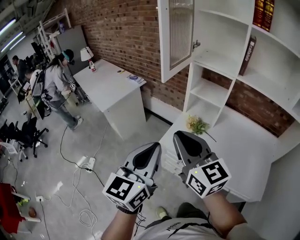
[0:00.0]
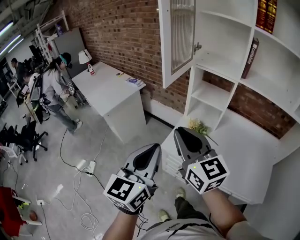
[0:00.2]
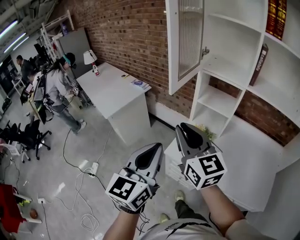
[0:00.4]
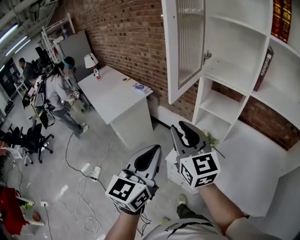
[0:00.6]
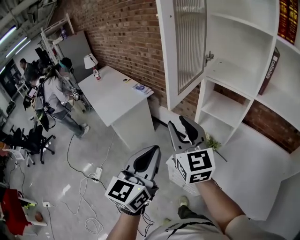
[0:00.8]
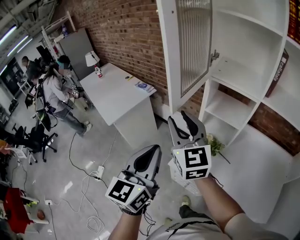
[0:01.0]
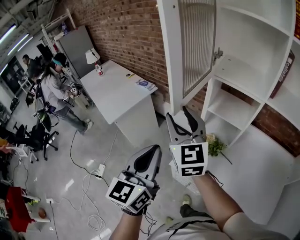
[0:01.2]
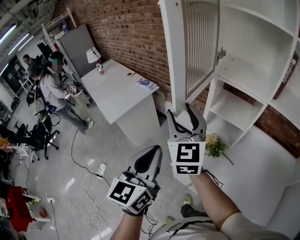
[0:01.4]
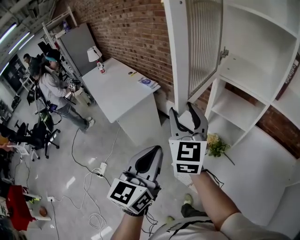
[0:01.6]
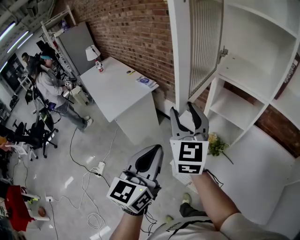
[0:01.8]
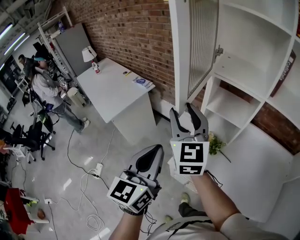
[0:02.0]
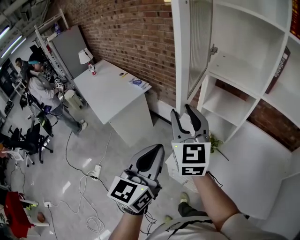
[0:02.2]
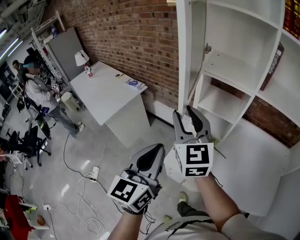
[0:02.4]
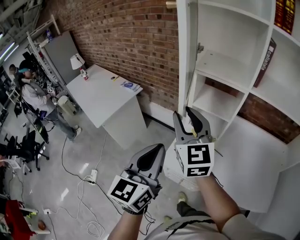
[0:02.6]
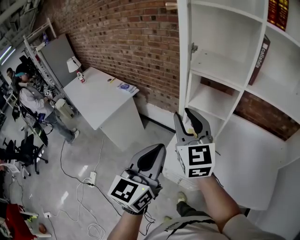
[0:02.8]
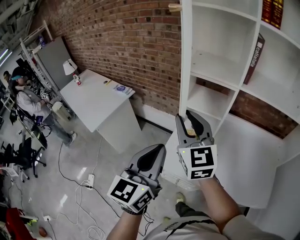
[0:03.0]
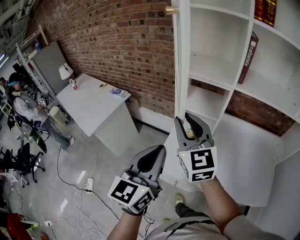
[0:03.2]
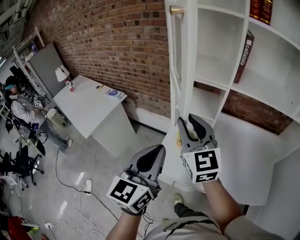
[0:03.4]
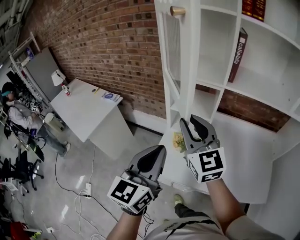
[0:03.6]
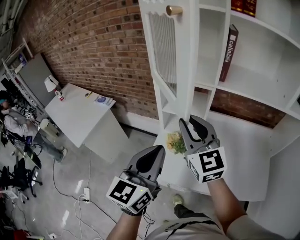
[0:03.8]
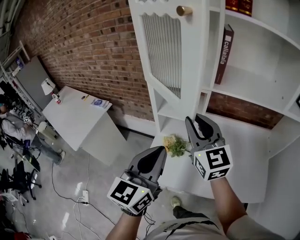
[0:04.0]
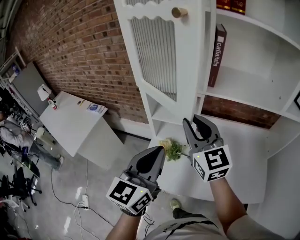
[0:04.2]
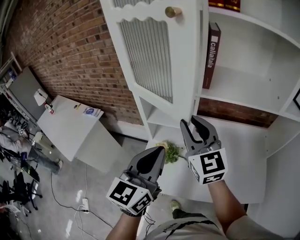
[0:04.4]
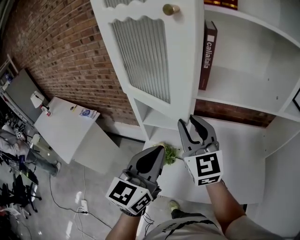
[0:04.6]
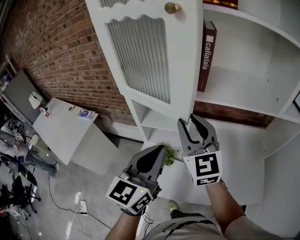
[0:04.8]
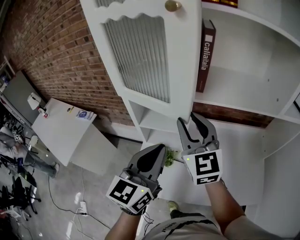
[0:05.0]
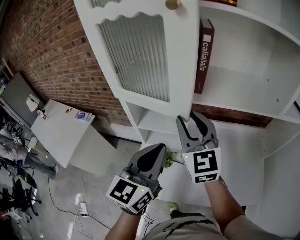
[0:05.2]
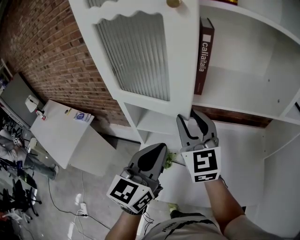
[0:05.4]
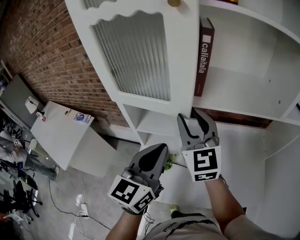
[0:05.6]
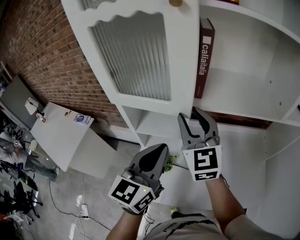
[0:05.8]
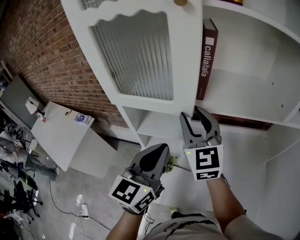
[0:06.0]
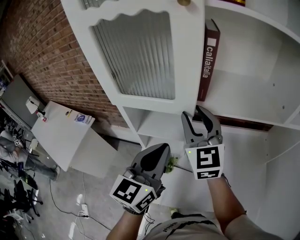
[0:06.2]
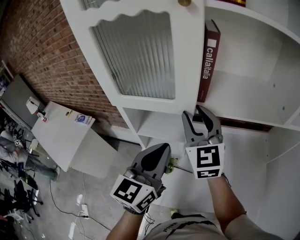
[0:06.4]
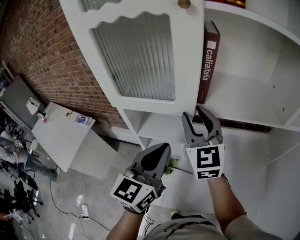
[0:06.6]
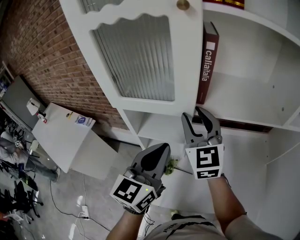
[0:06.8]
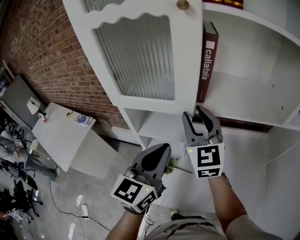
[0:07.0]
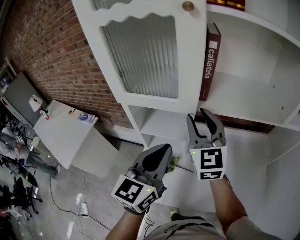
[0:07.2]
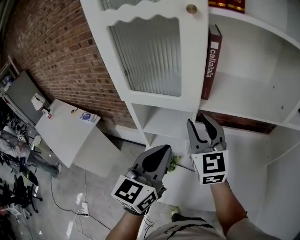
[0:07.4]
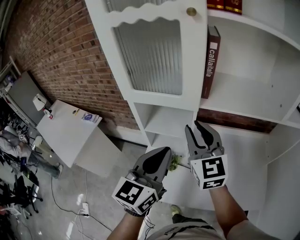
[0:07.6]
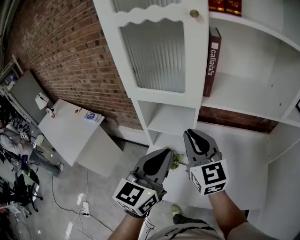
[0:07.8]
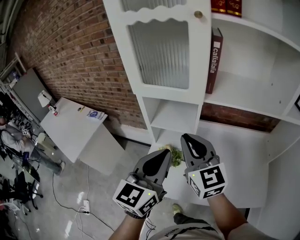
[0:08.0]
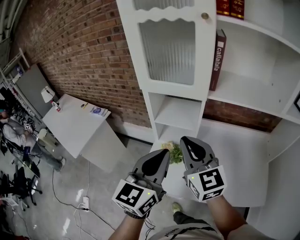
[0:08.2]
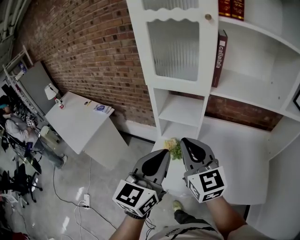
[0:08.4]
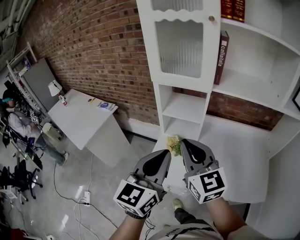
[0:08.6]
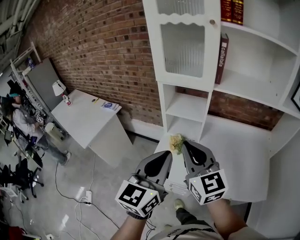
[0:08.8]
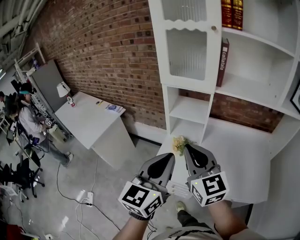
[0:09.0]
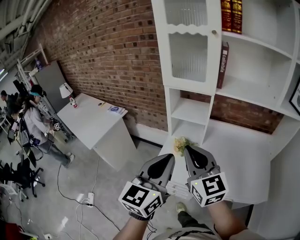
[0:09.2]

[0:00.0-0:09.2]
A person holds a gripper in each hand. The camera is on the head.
0:00.0 to 0:01.6: The grippers both shift forward by some 25 cm. The right gripper changes its angle by roughly 20 degrees, and opens up.
0:01.6 to 0:03.0: Both grippers move to the right, about 10 cm. The right gripper closes.
0:03.0 to 0:04.6: Both grippers move to the right and forward, about 20 cm.
0:04.6 to 0:06.2: Both grippers move forward, roughly 10 cm.
0:06.2 to 0:07.6: Both grippers move backward, some 5 cm.
0:07.6 to 0:09.2: The right gripper heads backward and to the left, covering about 30 cm, and closes its fingers. The left gripper goes roughly 25 cm backward.

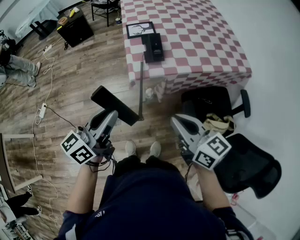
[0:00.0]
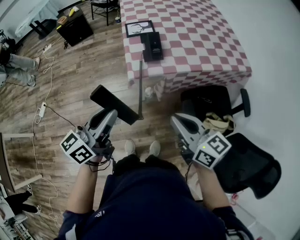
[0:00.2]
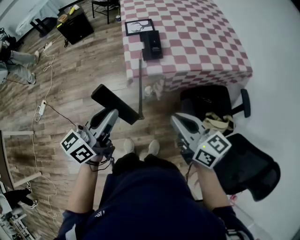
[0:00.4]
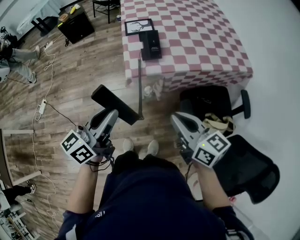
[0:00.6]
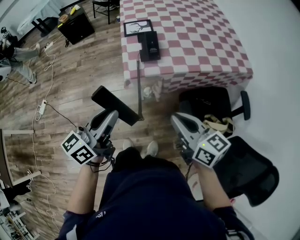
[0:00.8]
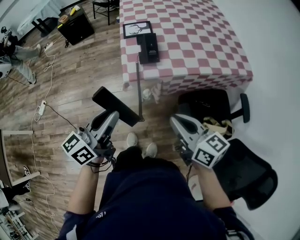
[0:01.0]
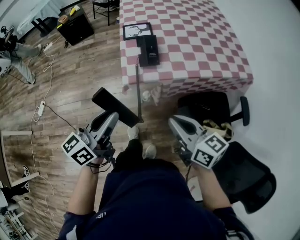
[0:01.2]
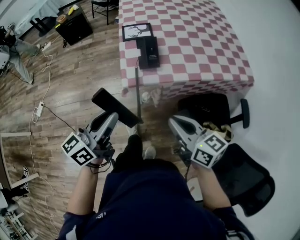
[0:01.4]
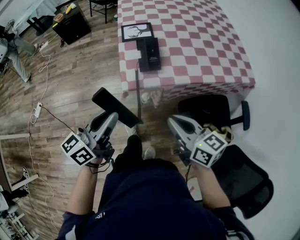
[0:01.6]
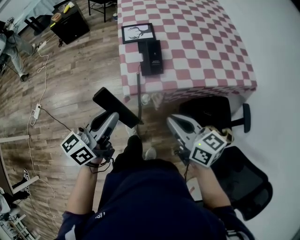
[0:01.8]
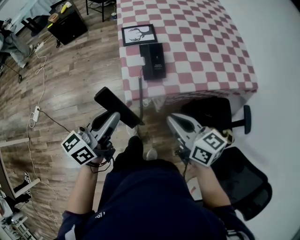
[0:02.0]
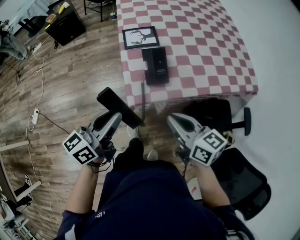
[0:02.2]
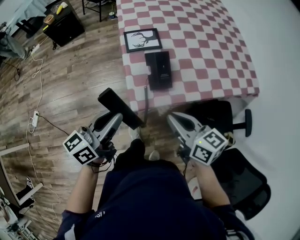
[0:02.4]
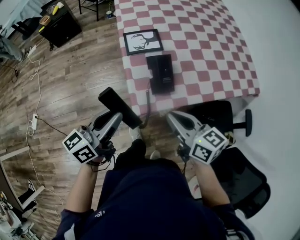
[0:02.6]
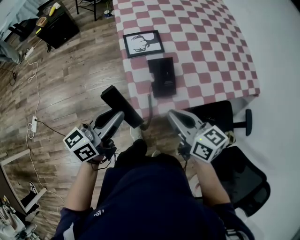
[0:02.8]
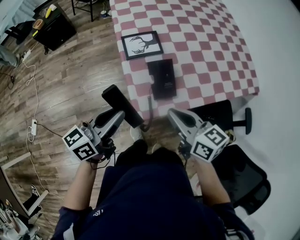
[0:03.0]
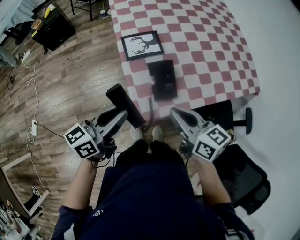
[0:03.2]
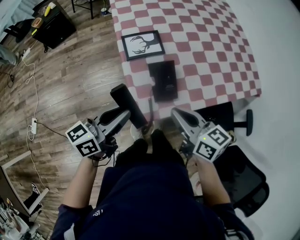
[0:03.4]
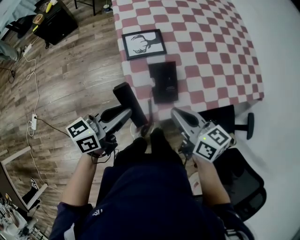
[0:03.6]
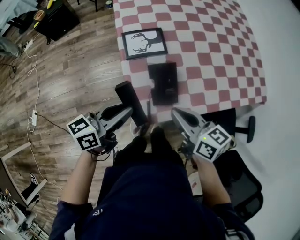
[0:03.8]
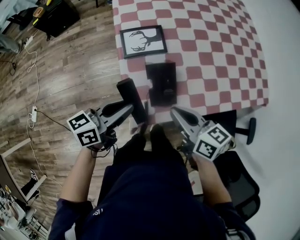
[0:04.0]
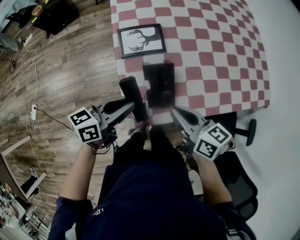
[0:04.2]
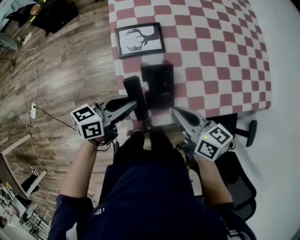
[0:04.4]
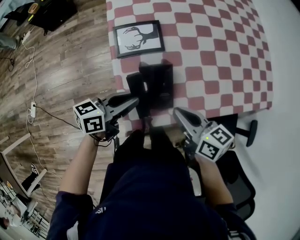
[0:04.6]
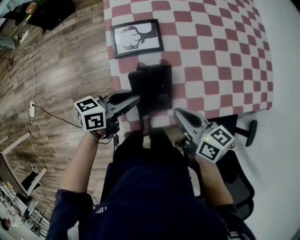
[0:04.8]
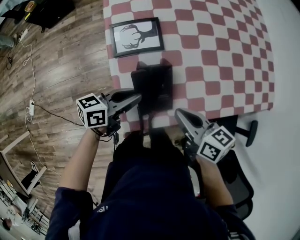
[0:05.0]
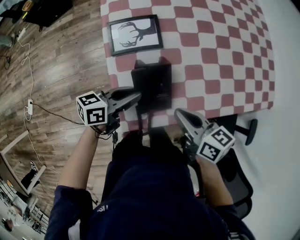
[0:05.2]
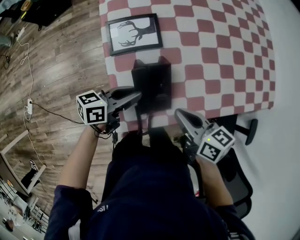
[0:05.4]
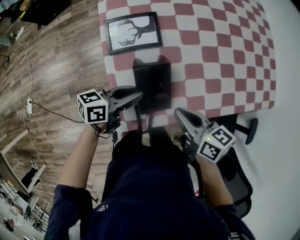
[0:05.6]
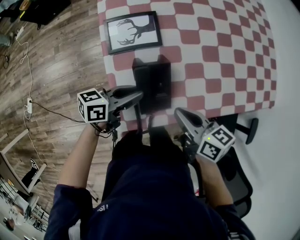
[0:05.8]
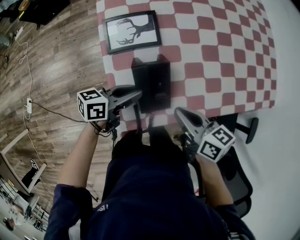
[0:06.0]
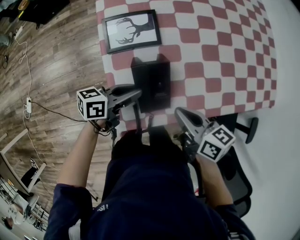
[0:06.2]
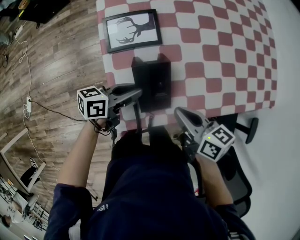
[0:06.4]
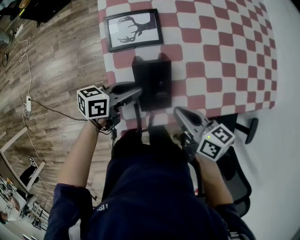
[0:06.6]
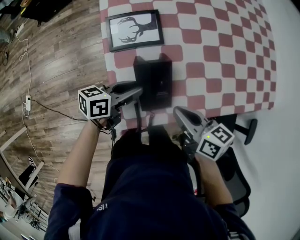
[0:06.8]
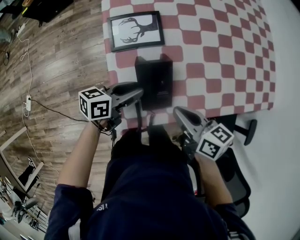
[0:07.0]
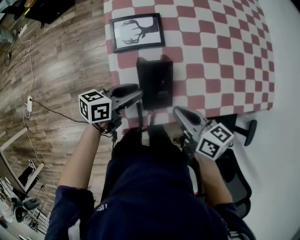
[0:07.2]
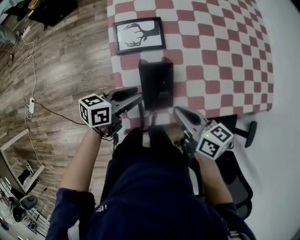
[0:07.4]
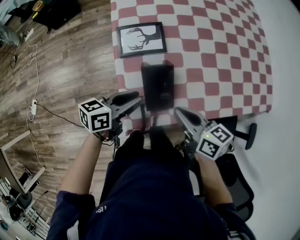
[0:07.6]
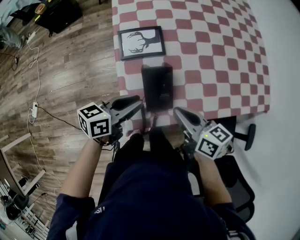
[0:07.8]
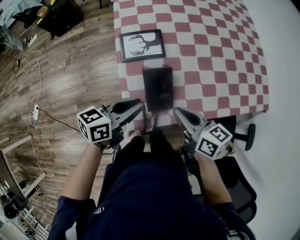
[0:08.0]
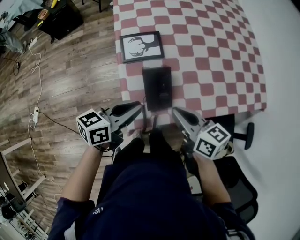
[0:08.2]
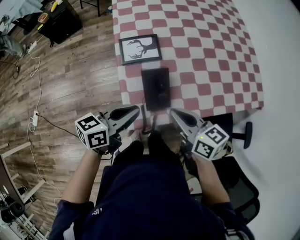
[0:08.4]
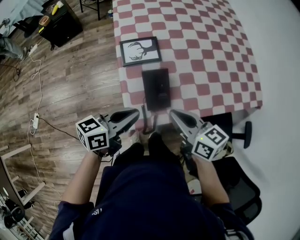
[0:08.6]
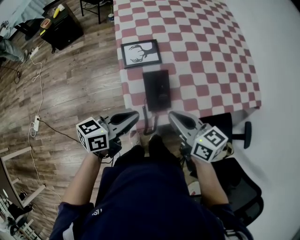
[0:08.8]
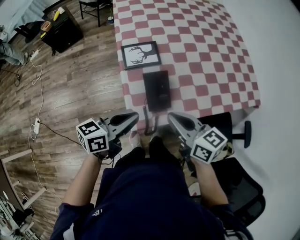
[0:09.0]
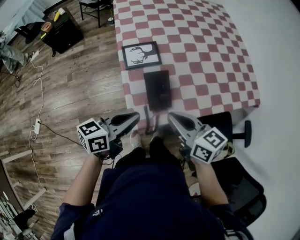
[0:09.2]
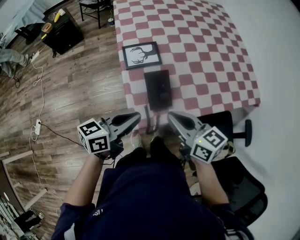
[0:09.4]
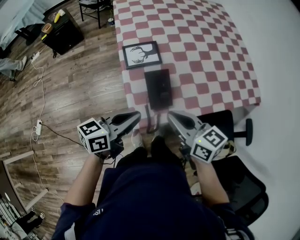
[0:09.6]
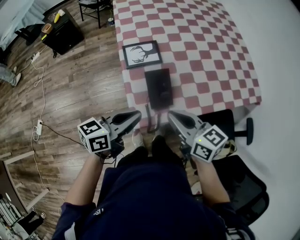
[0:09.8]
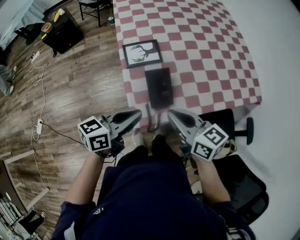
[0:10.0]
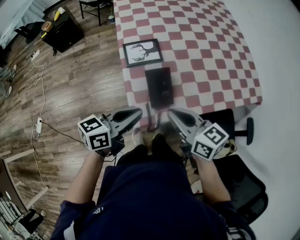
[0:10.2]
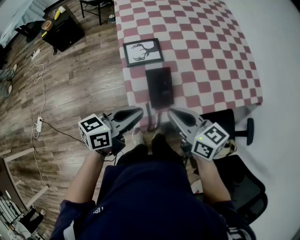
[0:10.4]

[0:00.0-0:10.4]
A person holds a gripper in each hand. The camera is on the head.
0:00.0 to 0:01.4: The two grippers go roughly 5 cm forward.
0:01.4 to 0:03.0: The right gripper heads forward and to the left, covering about 25 cm, while the left gripper travels forward by roughly 25 cm.
0:03.0 to 0:04.4: The right gripper heads forward, downward and to the right, covering roughly 15 cm. Meanwhile the left gripper shifts roughly 15 cm downward, forward and to the right.
0:04.4 to 0:06.0: The right gripper shifts by about 5 cm. Meanwhile the left gripper moves downward, approximately 10 cm.
0:06.0 to 0:07.4: There are only small adjustments of the grippers.
0:07.4 to 0:09.0: Both grippers move upward and backward, some 15 cm. The left gripper closes up.
0:09.0 to 0:10.4: The grippers move only a little.

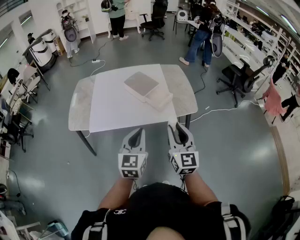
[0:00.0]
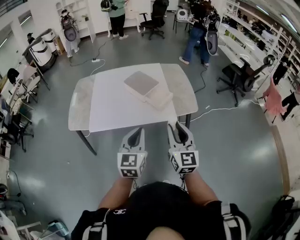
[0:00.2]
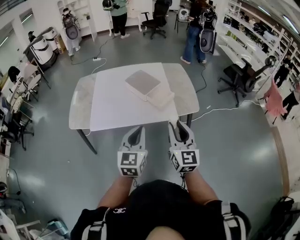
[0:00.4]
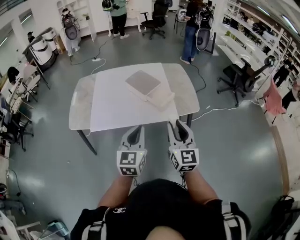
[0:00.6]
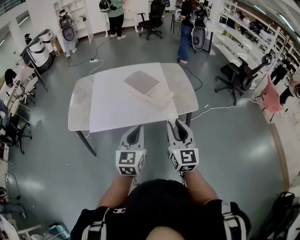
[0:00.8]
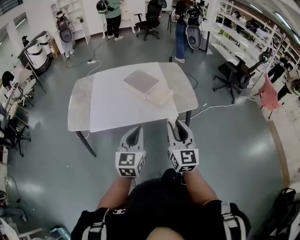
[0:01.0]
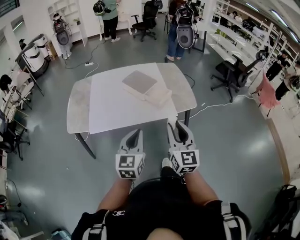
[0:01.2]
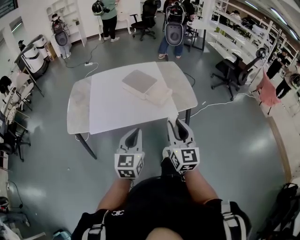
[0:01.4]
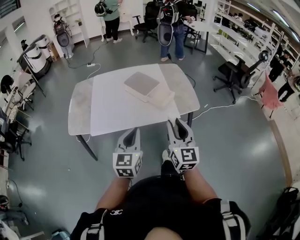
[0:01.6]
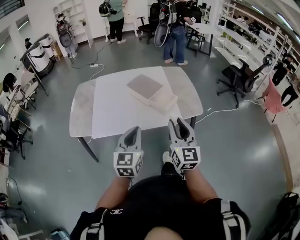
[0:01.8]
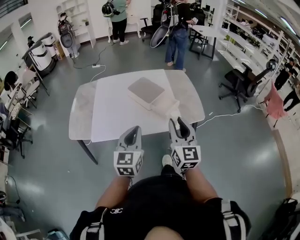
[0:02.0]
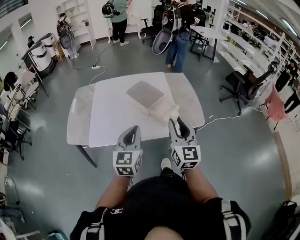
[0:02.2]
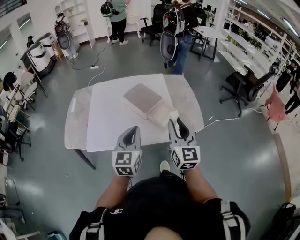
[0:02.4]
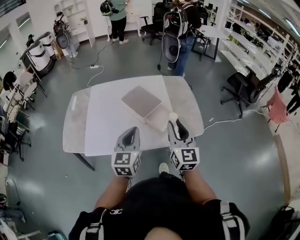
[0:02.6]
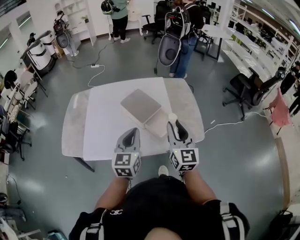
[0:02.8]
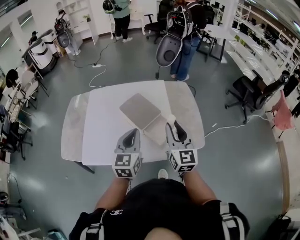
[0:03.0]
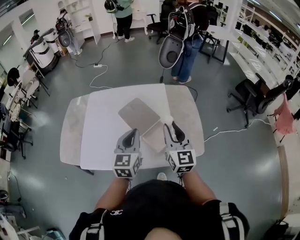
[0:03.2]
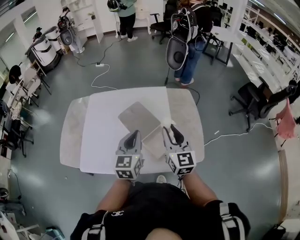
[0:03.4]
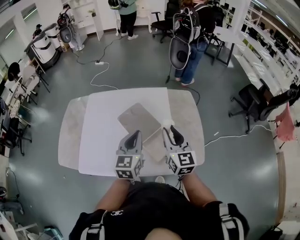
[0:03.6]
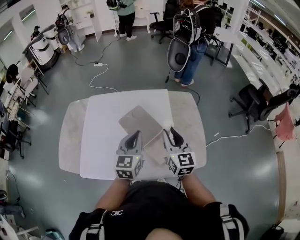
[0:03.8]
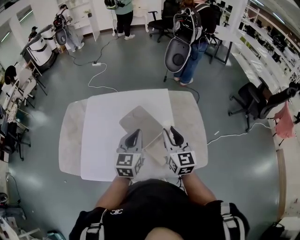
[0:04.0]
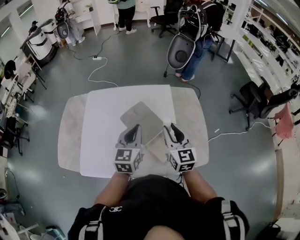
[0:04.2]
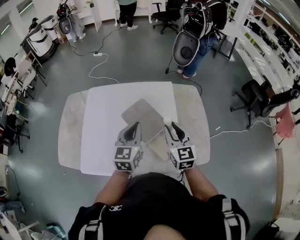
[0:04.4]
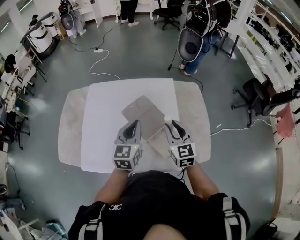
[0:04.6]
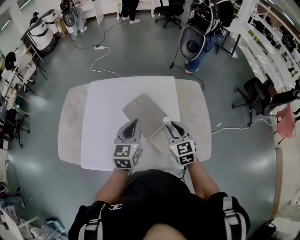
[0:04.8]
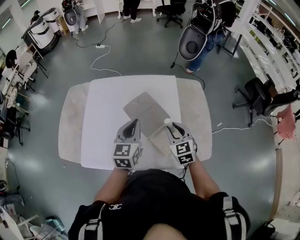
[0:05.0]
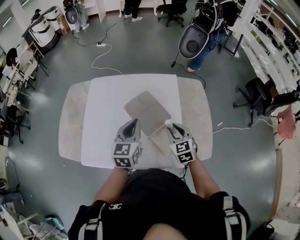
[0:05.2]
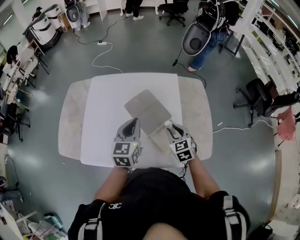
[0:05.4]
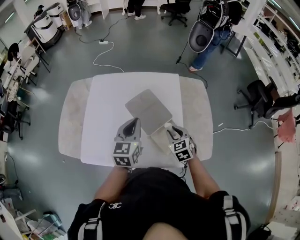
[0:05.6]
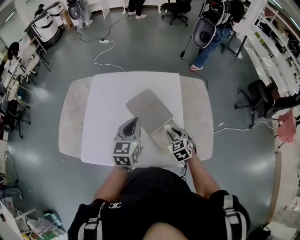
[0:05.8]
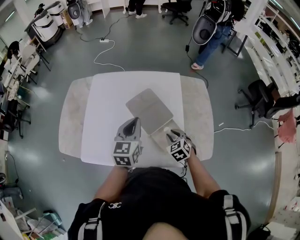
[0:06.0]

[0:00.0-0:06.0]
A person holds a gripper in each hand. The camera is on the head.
0:00.0 to 0:01.6: The left gripper moves to the left, about 5 cm.
0:01.6 to 0:03.0: The grippers both shift forward by approximately 30 cm.
0:03.0 to 0:04.4: The two grippers go approximately 15 cm forward.
0:04.4 to 0:06.0: The right gripper heads downward, covering some 20 cm, and points its fingers approximately 40 degrees further downward.
